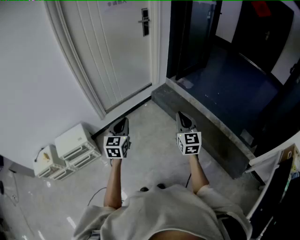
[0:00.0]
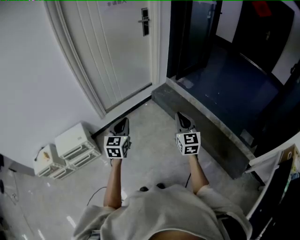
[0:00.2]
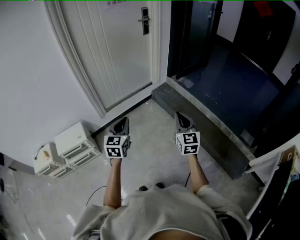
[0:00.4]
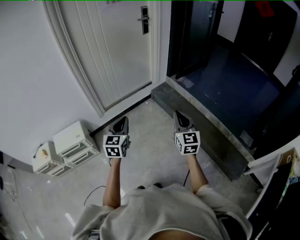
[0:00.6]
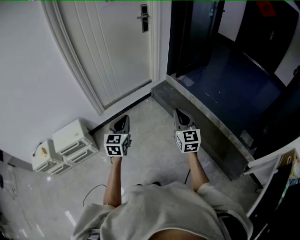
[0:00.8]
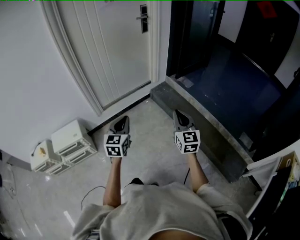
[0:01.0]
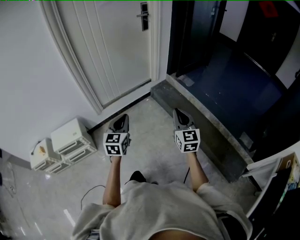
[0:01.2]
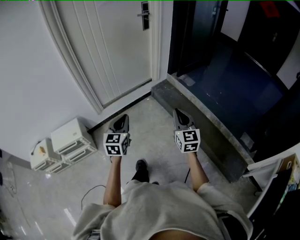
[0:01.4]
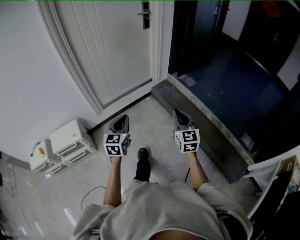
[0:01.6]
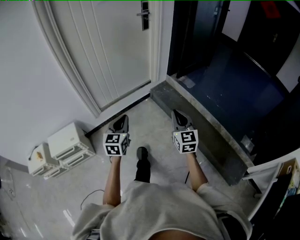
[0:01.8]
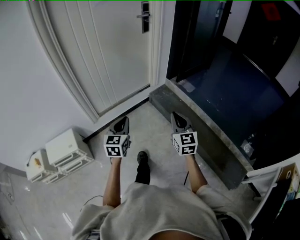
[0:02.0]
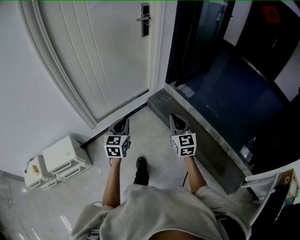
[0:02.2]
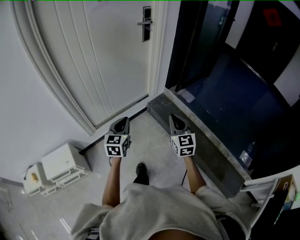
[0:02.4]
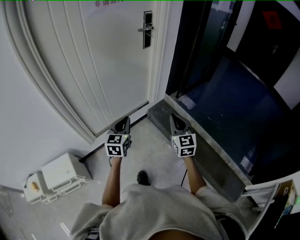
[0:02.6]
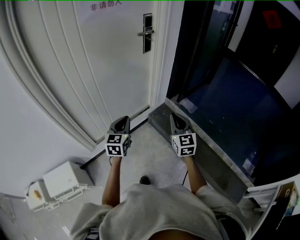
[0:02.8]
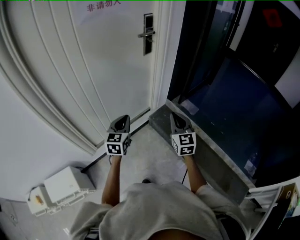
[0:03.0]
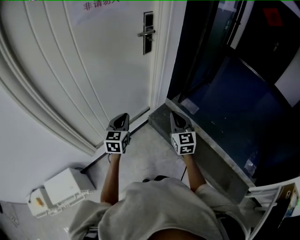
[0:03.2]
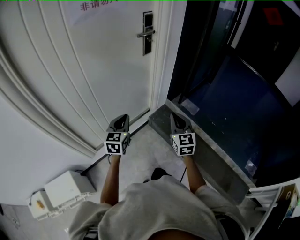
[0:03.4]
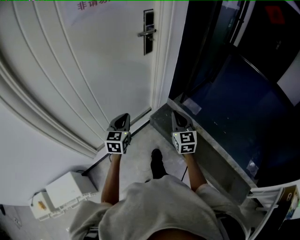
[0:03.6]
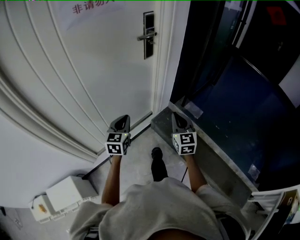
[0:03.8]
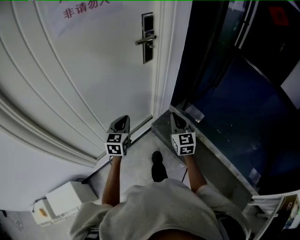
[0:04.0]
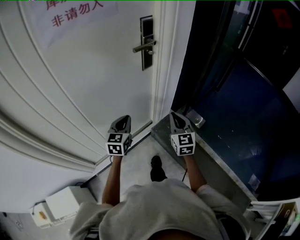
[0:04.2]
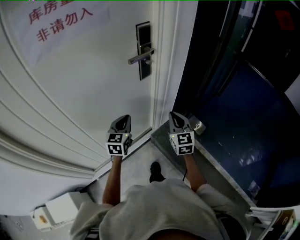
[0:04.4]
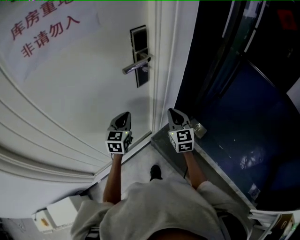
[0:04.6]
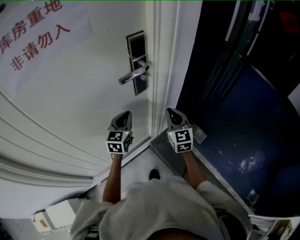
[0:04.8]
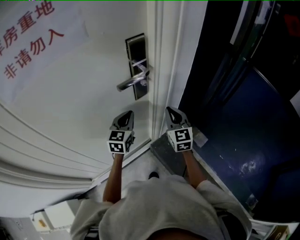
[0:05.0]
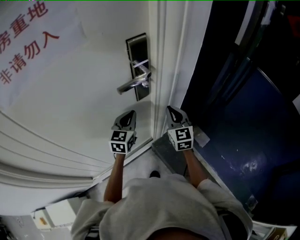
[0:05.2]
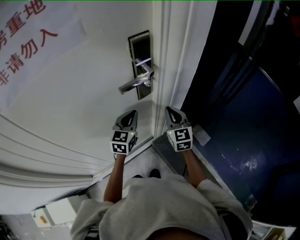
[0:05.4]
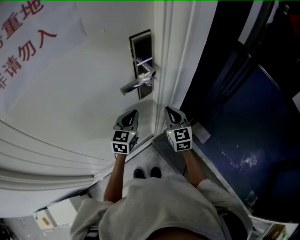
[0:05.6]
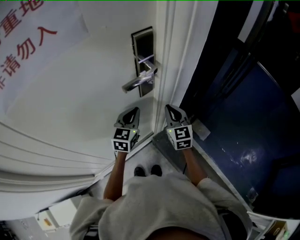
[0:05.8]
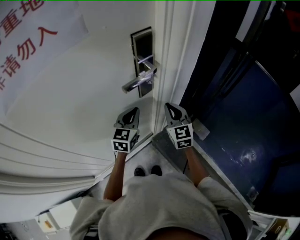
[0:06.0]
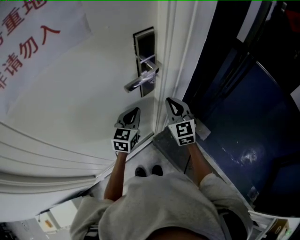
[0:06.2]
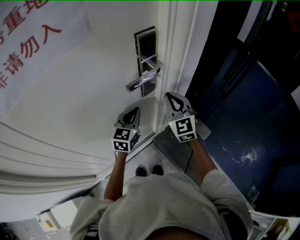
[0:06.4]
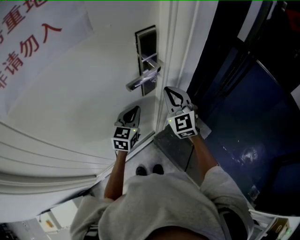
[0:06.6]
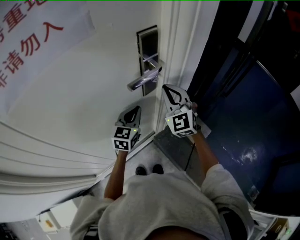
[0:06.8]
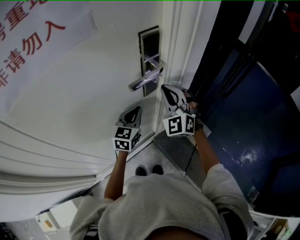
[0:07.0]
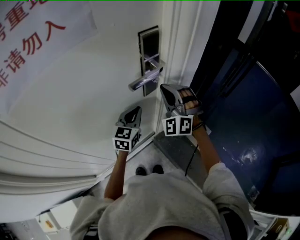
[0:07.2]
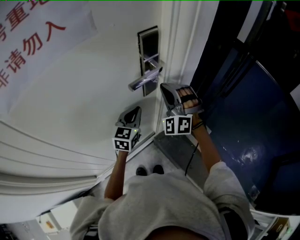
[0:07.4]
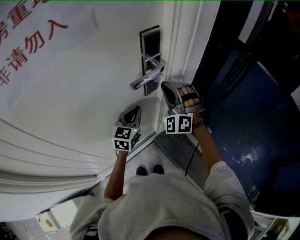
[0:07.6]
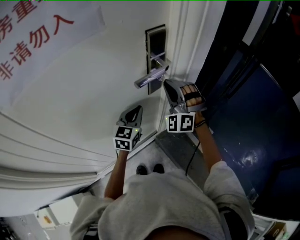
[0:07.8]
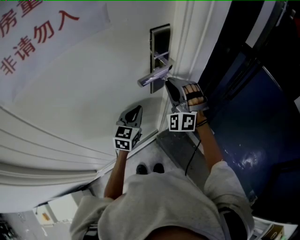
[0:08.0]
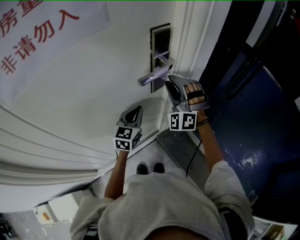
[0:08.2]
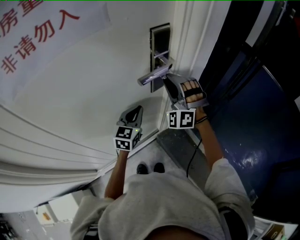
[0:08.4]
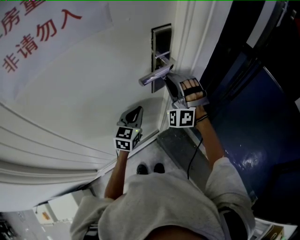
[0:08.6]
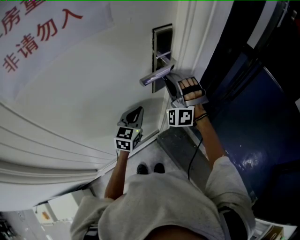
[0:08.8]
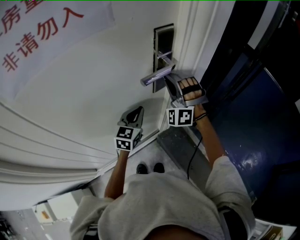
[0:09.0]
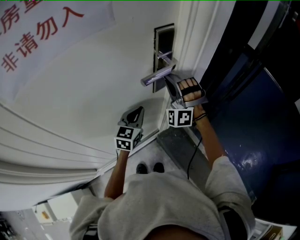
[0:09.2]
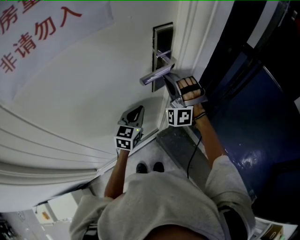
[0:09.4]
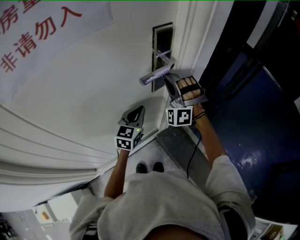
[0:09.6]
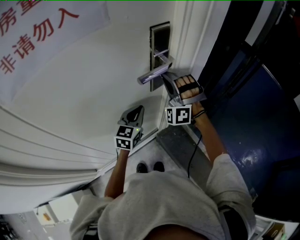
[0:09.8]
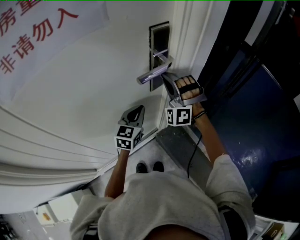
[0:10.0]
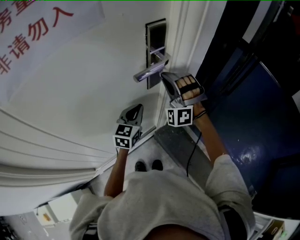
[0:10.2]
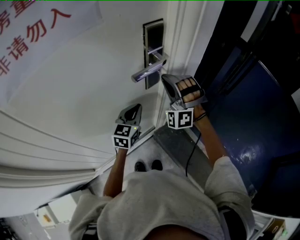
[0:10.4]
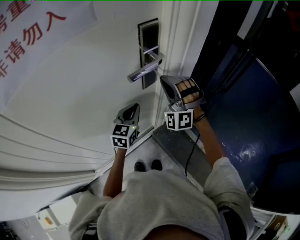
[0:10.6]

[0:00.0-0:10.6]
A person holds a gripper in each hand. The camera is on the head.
0.0 to 1.6 s: Both grippers travel together forward, roughly 5 cm.
1.6 to 3.0 s: Both grippers are carried forward, roughly 40 cm.
3.0 to 4.6 s: The two grippers go roughly 40 cm forward.
4.6 to 6.0 s: The two grippers go some 10 cm forward.
6.0 to 7.6 s: The right gripper shifts some 10 cm upward and to the left, and twists approximately 60 degrees counterclockwise, seen from behind.
7.6 to 10.6 s: The grippers move only a little.

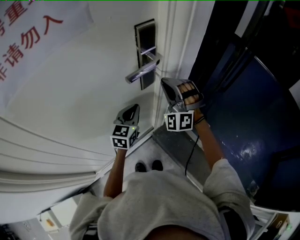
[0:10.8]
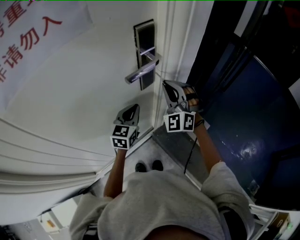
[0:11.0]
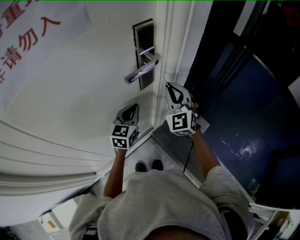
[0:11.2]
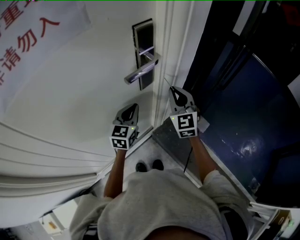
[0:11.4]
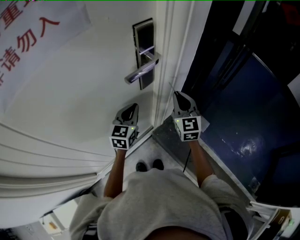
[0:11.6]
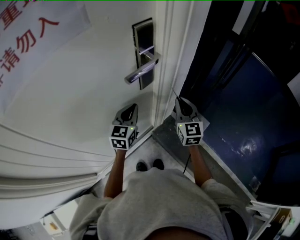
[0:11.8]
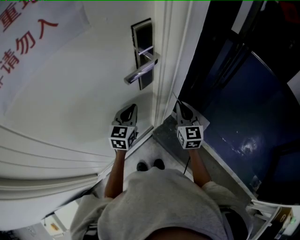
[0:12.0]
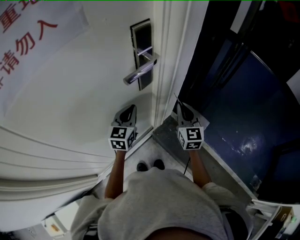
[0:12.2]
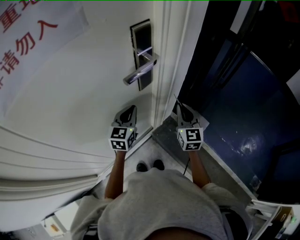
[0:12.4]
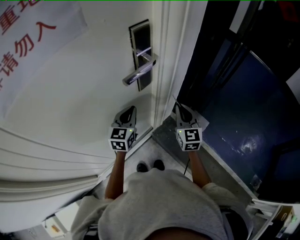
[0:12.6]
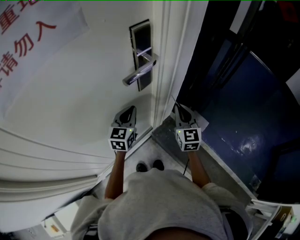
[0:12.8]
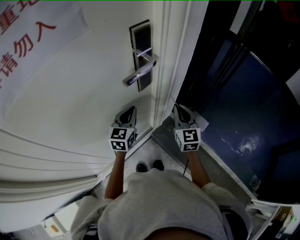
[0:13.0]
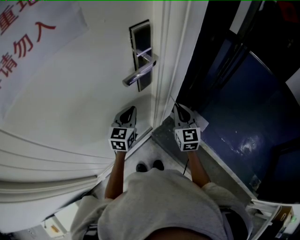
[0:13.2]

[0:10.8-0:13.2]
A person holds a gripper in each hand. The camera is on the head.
10.8 to 12.0 s: The right gripper travels to the right and downward by roughly 15 cm, and twists approximately 70 degrees clockwise, seen from behind.
12.0 to 13.2 s: Neither gripper changes place.

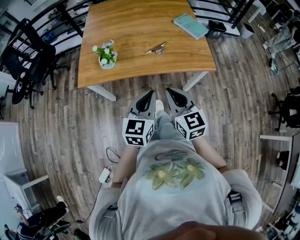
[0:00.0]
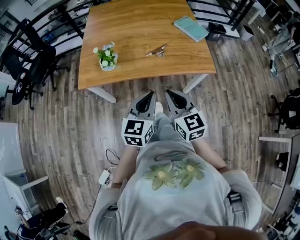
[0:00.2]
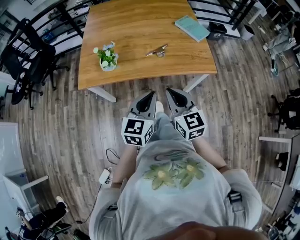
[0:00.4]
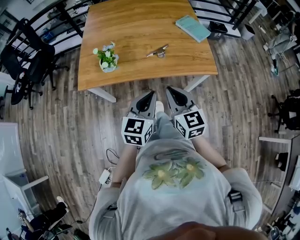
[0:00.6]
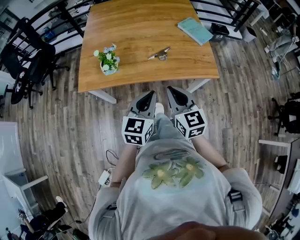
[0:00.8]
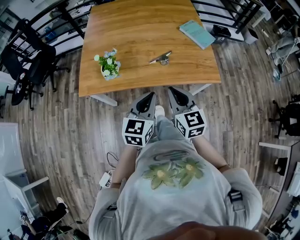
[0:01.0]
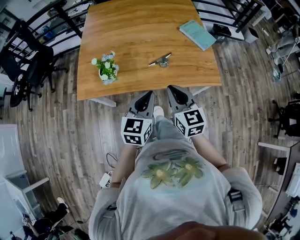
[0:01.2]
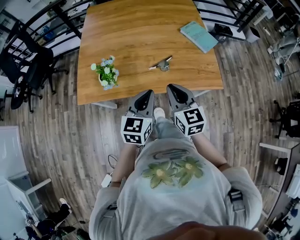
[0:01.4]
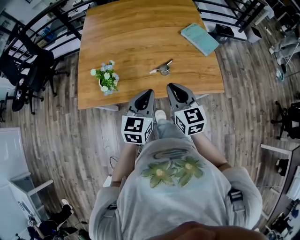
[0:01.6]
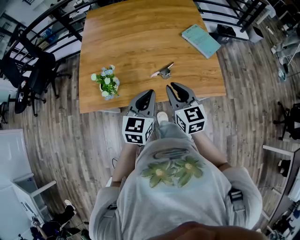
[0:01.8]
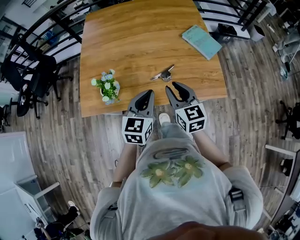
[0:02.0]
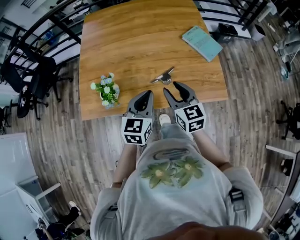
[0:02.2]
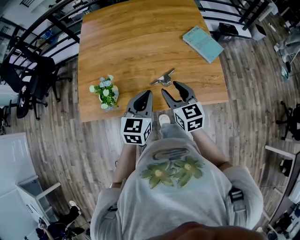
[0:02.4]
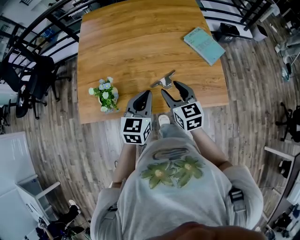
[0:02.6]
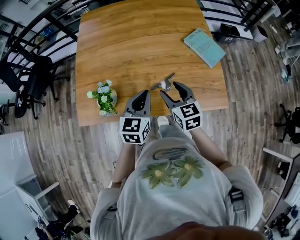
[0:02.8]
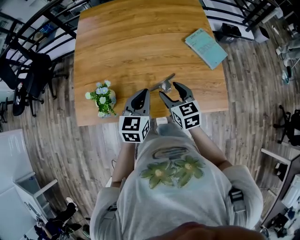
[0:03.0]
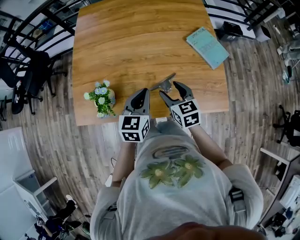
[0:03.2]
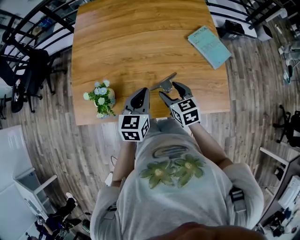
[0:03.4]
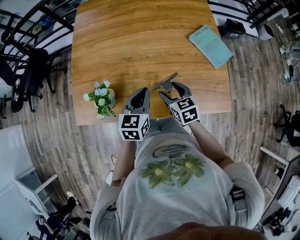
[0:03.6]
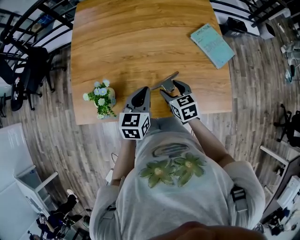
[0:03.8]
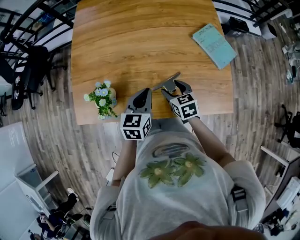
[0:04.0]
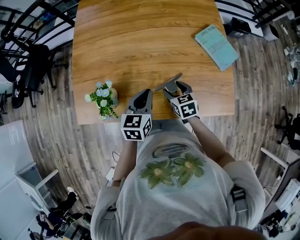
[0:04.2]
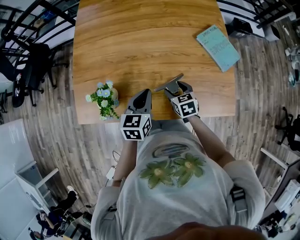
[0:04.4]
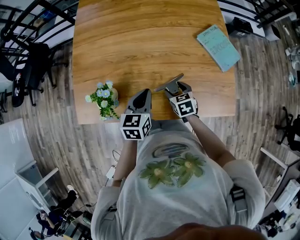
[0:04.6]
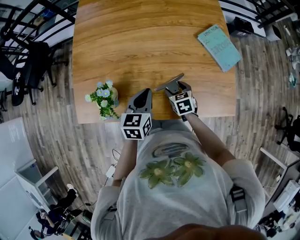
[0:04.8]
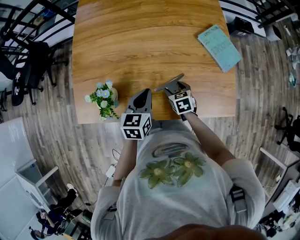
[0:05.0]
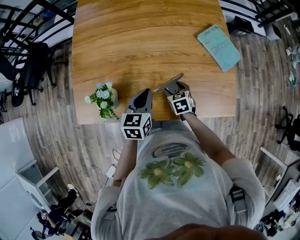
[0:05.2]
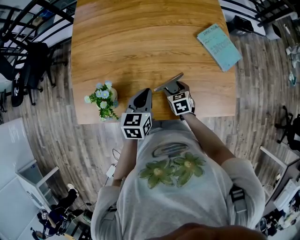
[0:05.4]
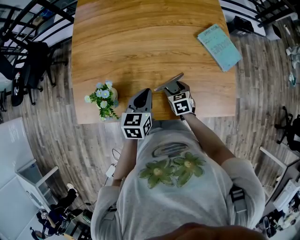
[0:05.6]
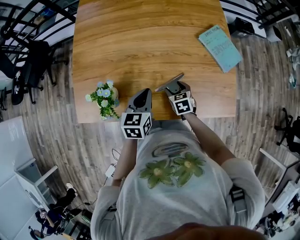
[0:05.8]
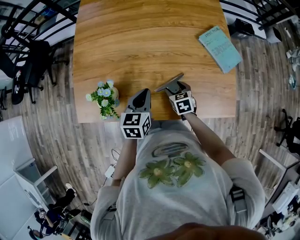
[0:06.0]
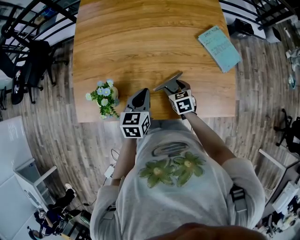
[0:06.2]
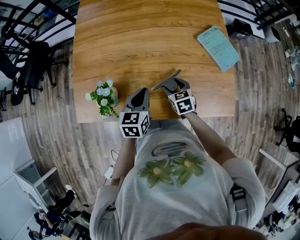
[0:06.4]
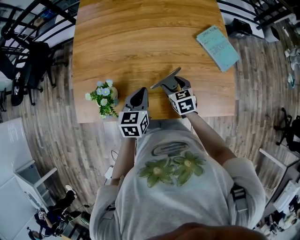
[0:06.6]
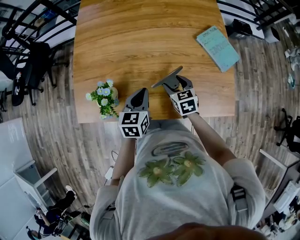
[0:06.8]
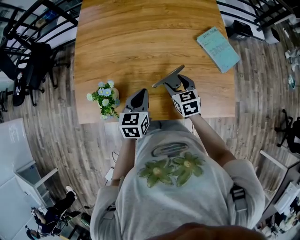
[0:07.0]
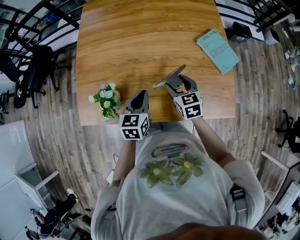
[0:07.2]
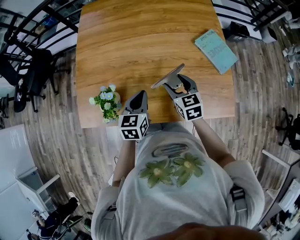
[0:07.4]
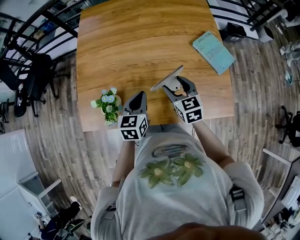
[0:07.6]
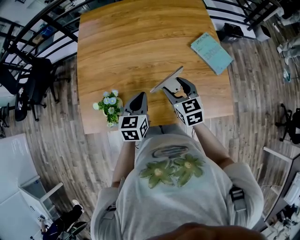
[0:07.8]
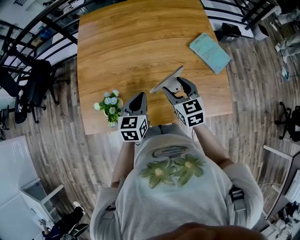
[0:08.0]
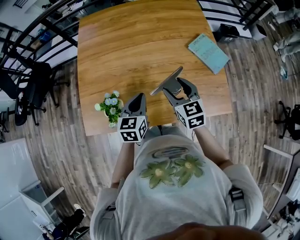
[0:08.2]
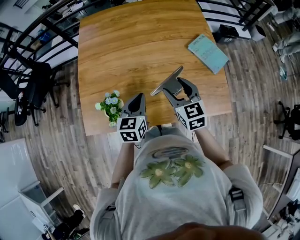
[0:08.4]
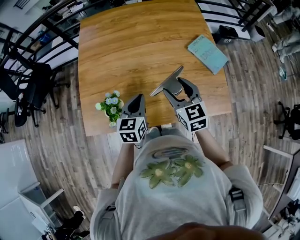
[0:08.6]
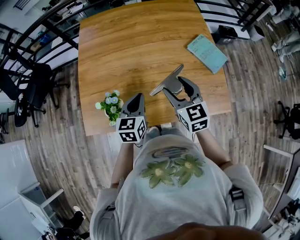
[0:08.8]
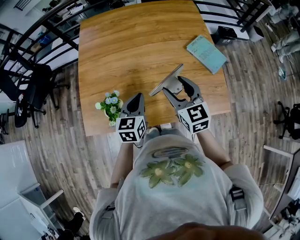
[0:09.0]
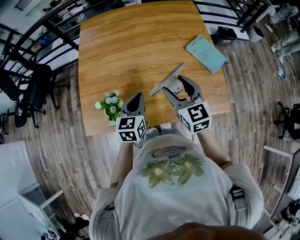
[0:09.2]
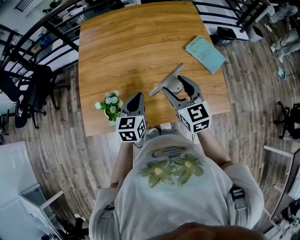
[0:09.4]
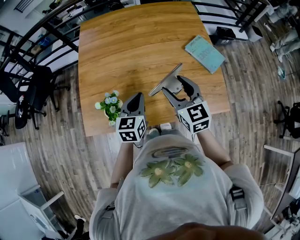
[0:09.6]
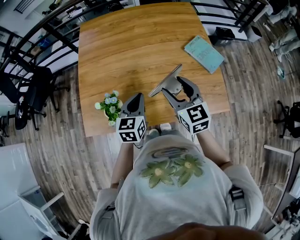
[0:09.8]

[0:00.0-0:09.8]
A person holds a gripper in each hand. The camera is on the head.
0.0 to 1.4 s: The grippers both shift forward by about 15 cm.
1.4 to 2.8 s: The left gripper is displaced forward by some 15 cm. The right gripper heads forward and downward, covering approximately 15 cm, and opens.
2.8 to 4.2 s: The right gripper heads downward, covering roughly 15 cm, and changes its angle by some 20 degrees. Meanwhile the left gripper moves downward, roughly 5 cm.
4.2 to 5.6 s: The right gripper travels downward by approximately 5 cm.
5.6 to 7.0 s: The right gripper heads upward, covering some 10 cm.
7.0 to 8.4 s: The right gripper moves upward, about 15 cm. Meanwhile the left gripper travels upward by roughly 5 cm.
8.4 to 9.8 s: The right gripper is displaced upward by about 5 cm.

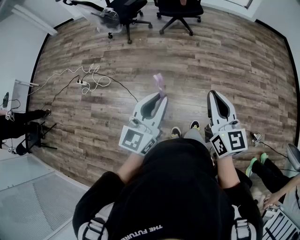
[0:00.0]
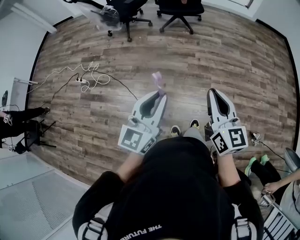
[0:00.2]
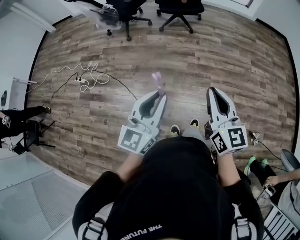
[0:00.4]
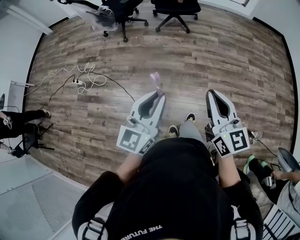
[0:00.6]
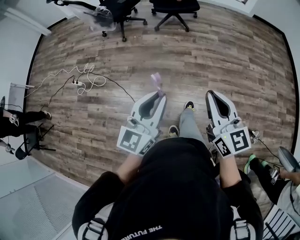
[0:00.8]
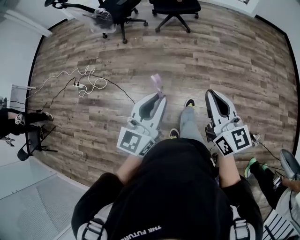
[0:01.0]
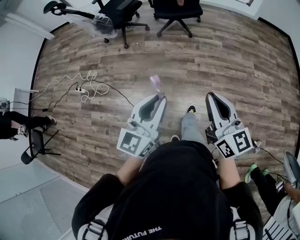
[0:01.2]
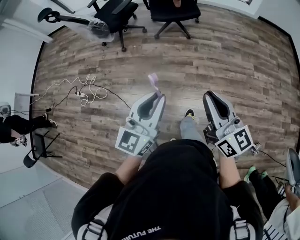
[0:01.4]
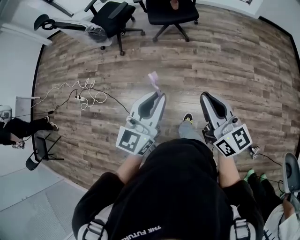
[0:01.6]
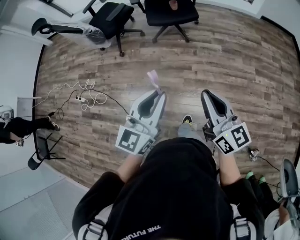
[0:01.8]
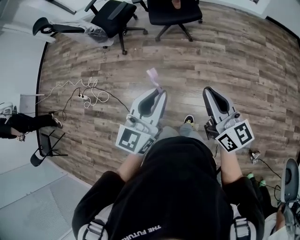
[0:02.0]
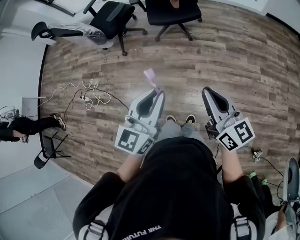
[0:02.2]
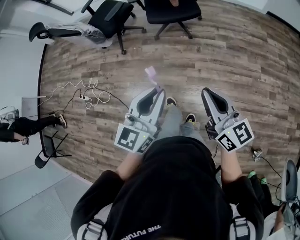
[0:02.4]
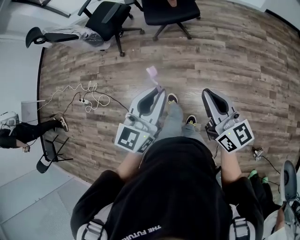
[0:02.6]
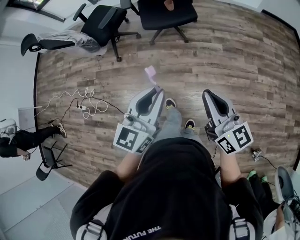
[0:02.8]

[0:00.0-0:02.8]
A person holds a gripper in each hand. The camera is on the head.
0.0 to 1.4 s: The two grippers go approximately 20 cm forward.
1.4 to 2.8 s: Both grippers move forward, roughly 25 cm.
